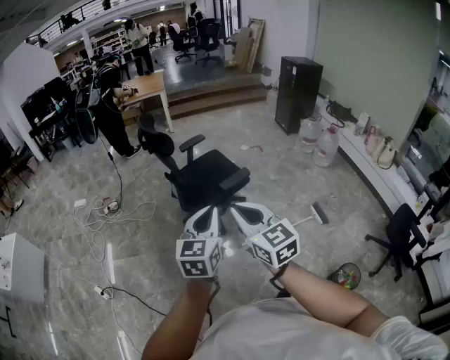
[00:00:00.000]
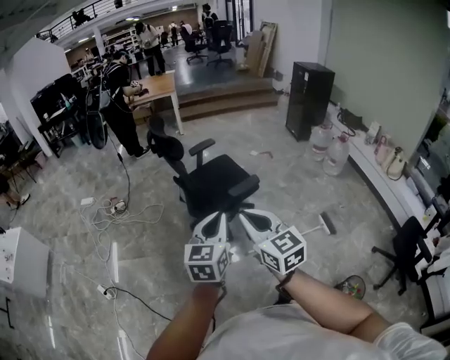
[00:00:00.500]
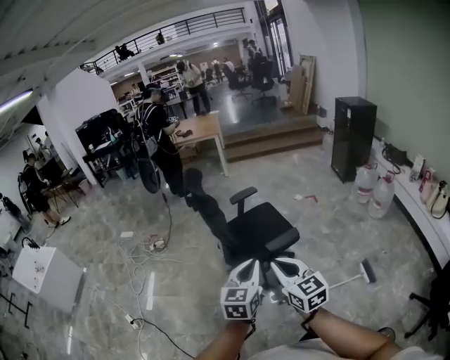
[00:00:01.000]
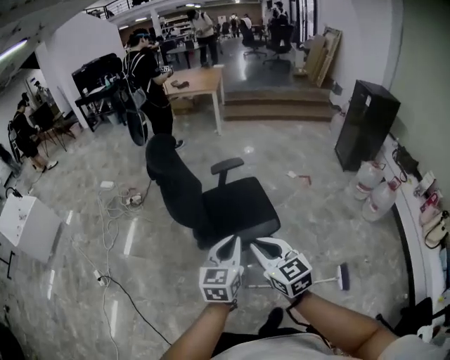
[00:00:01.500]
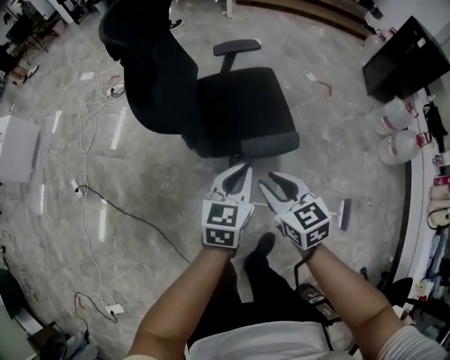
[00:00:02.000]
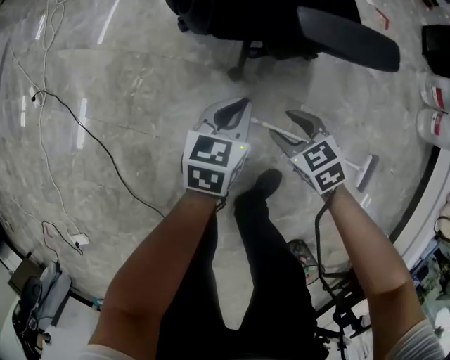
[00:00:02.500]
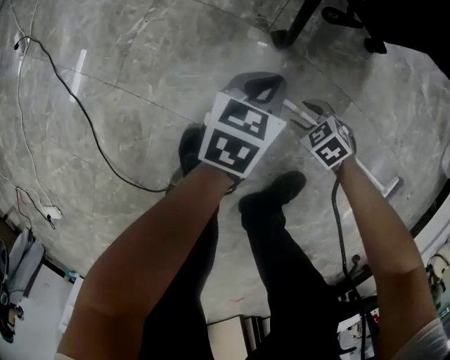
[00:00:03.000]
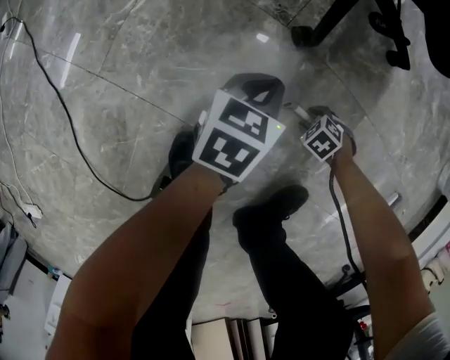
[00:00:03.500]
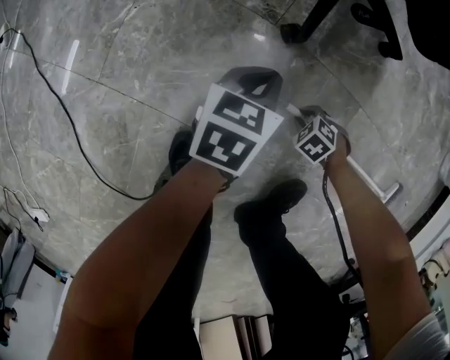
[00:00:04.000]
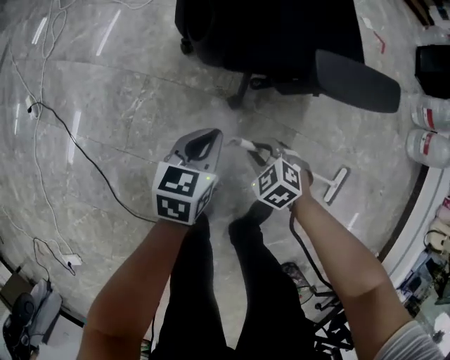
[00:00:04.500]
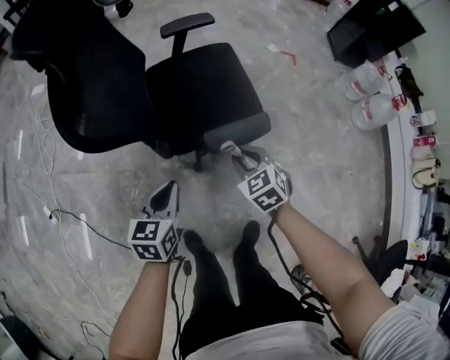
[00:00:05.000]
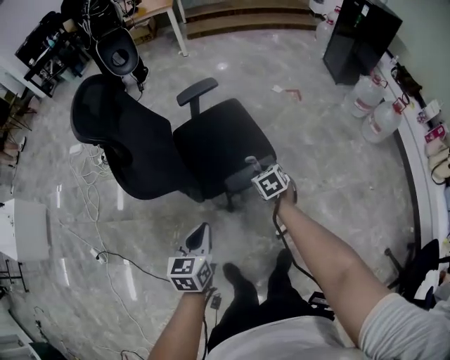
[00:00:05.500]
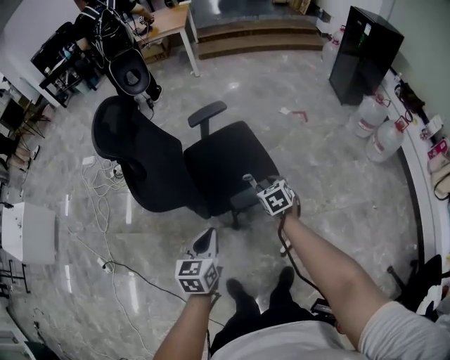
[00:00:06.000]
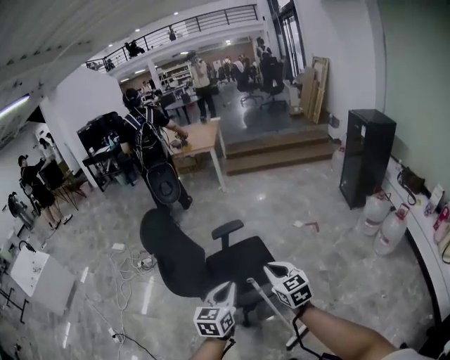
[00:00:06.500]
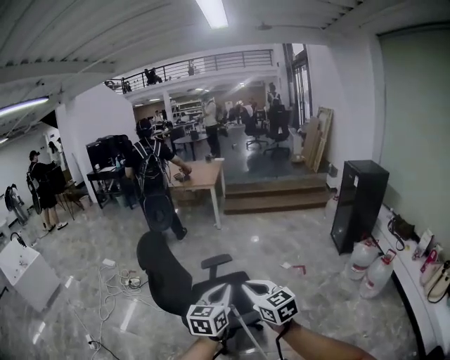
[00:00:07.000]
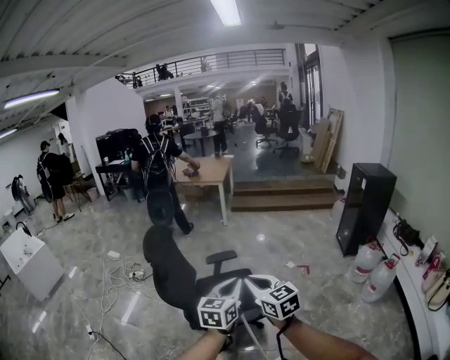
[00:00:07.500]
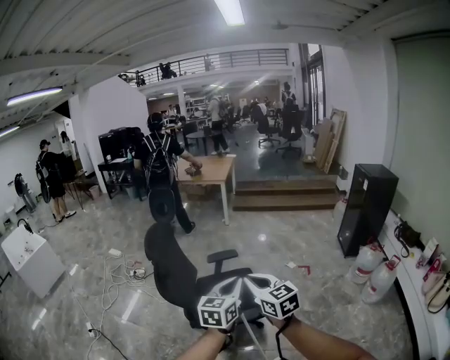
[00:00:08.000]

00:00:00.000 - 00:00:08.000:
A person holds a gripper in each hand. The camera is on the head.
00:00:00.000 - 00:00:02.000: The two grippers travel together, forward and to the right, approximately 40 cm. The two grippers go about 35 cm downward. The left gripper changes its angle by roughly 20 degrees, while the right gripper turns by roughly 30 degrees, and opens its fingers.
00:00:02.000 - 00:00:04.000: Both grippers move downward, roughly 80 cm. The left gripper rotates approximately 20 degrees, while the right gripper points its fingers roughly 60 degrees further downward, and opens, then closes once more.
00:00:04.000 - 00:00:06.000: The grippers both shift upward by some 80 cm. The right gripper tips its fingers upward by about 40 degrees.
00:00:06.000 - 00:00:08.000: The left gripper travels upward and to the right by about 40 cm, and changes its angle by about 20 degrees. Meanwhile the right gripper is displaced upward by some 40 cm, points its fingers roughly 40 degrees further upward, and closes up.

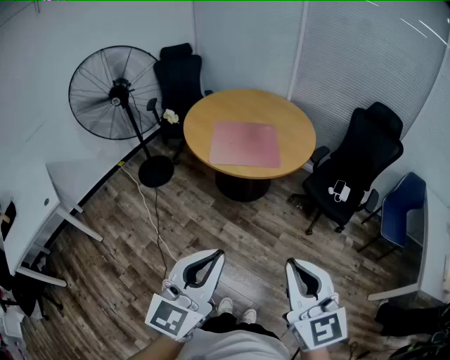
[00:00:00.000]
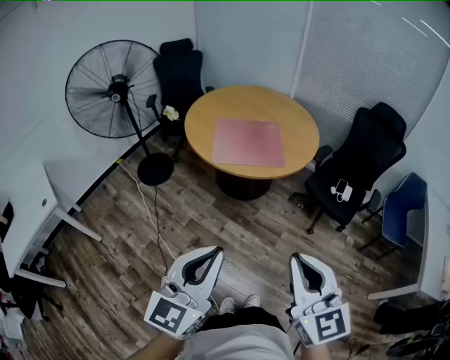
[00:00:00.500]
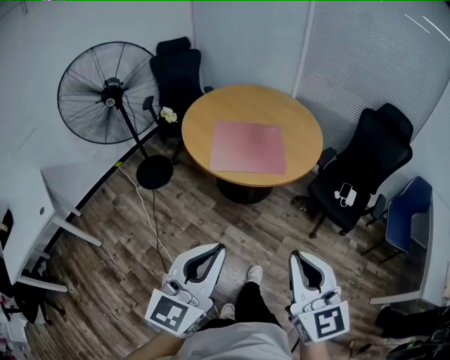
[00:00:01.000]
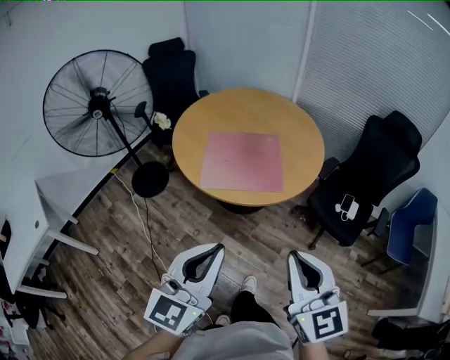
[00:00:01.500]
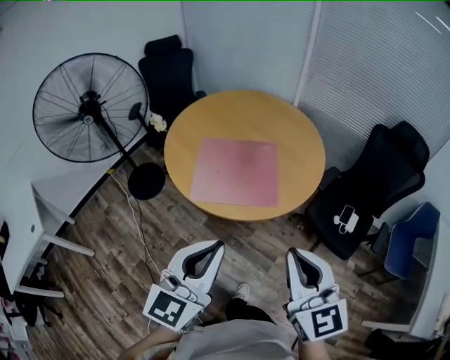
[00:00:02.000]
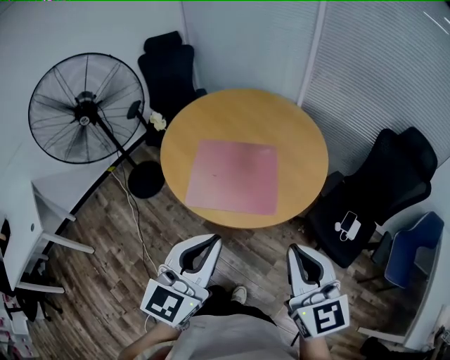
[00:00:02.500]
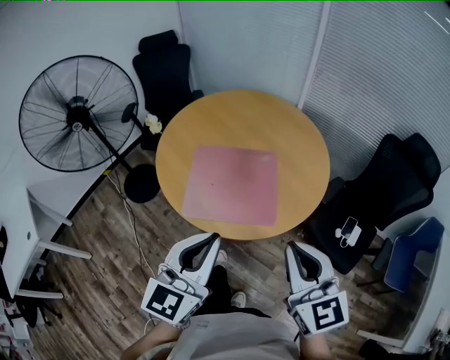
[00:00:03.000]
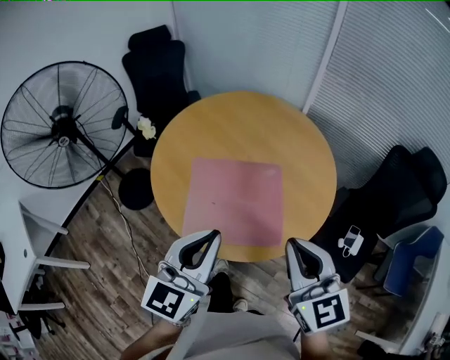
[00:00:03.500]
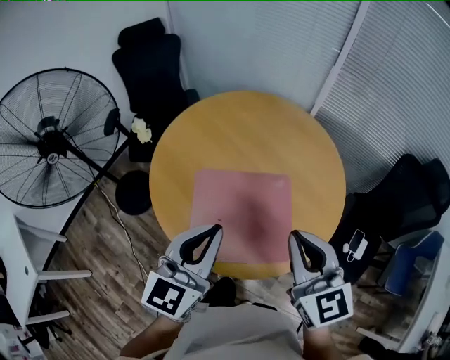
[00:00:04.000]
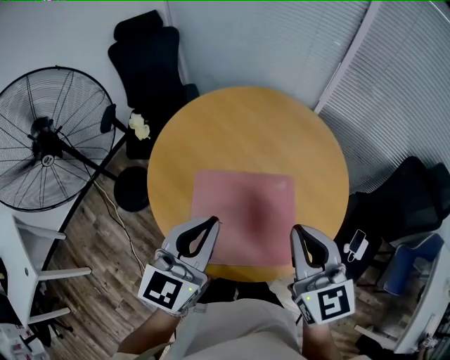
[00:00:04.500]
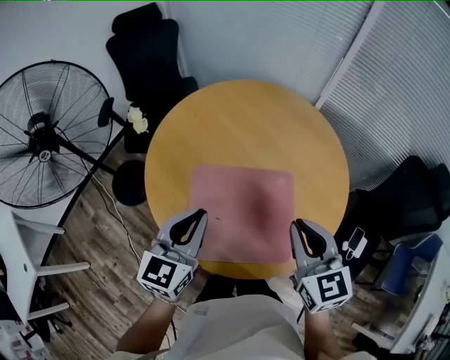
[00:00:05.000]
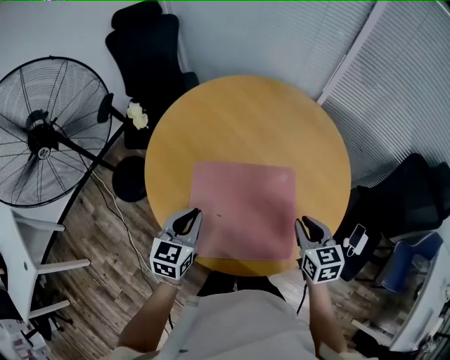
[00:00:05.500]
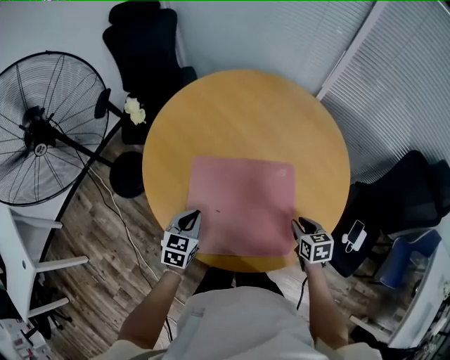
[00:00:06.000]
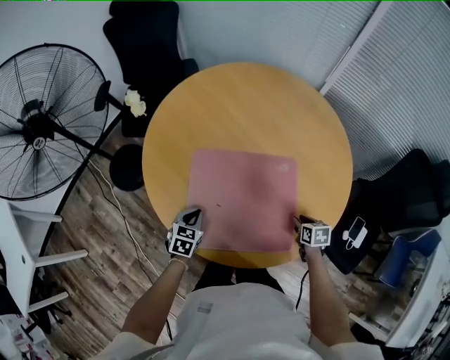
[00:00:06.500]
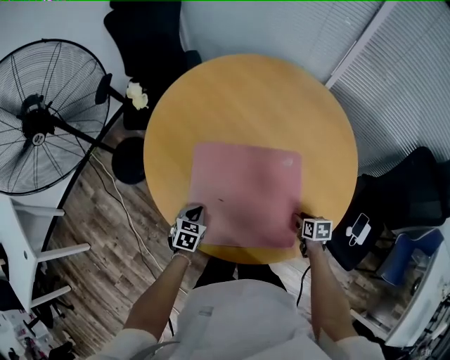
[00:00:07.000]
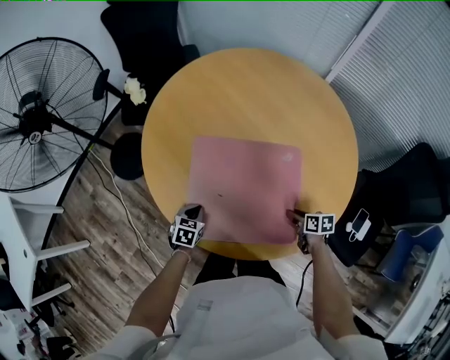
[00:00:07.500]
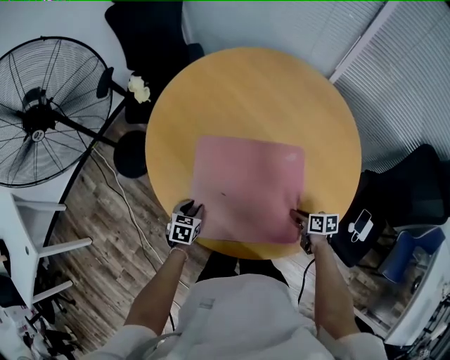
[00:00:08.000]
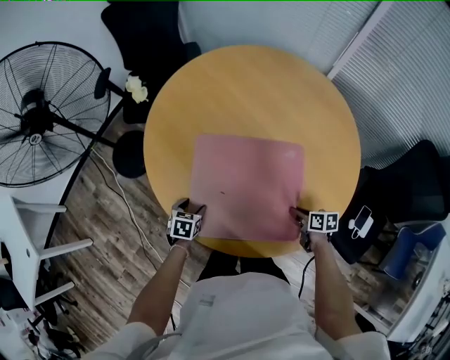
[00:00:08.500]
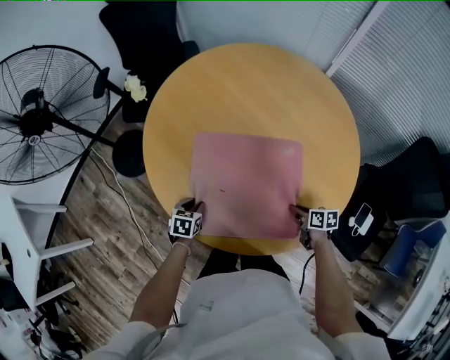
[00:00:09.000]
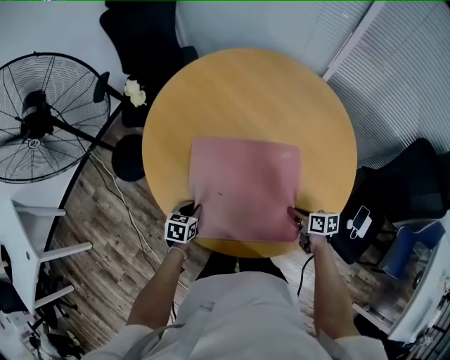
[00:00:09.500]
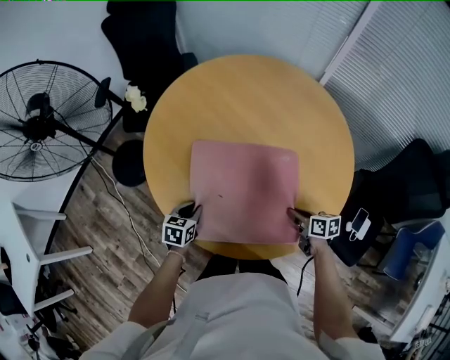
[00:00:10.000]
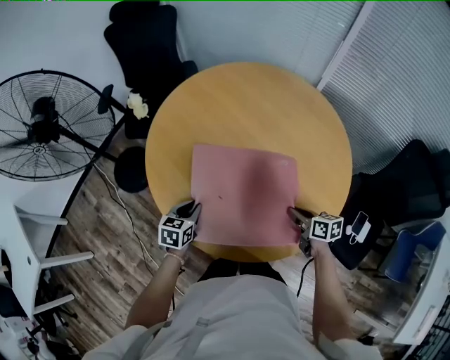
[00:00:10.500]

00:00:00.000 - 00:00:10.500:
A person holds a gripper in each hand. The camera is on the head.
00:00:00.000 - 00:00:02.000: The two grippers go some 35 cm forward.
00:00:02.000 - 00:00:04.000: Both grippers travel together forward, approximately 40 cm.
00:00:04.000 - 00:00:06.500: Both grippers travel together downward, roughly 40 cm. The left gripper tilts its fingers about 40 degrees downward, while the right gripper points its fingers about 50 degrees further downward, and opens up.
00:00:06.500 - 00:00:08.500: The right gripper changes its angle by roughly 20 degrees; the left gripper travels downward by about 5 cm, and opens up.
00:00:08.500 - 00:00:10.500: The two grippers go roughly 10 cm upward. The left gripper closes its fingers.

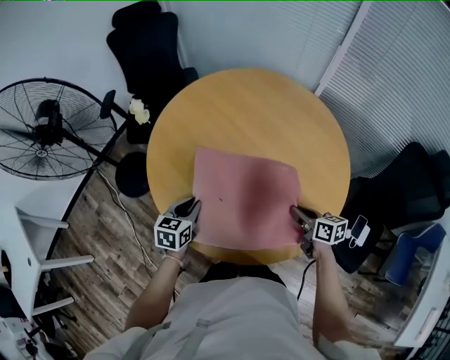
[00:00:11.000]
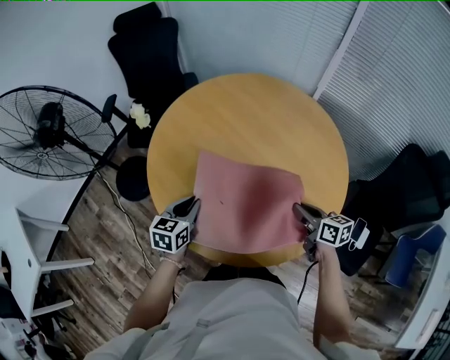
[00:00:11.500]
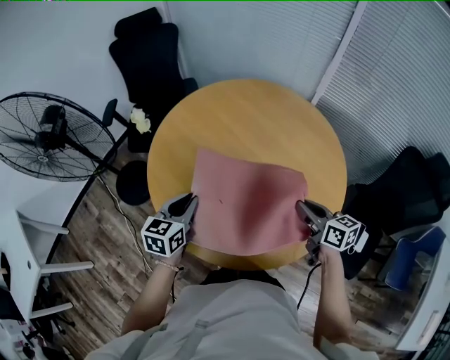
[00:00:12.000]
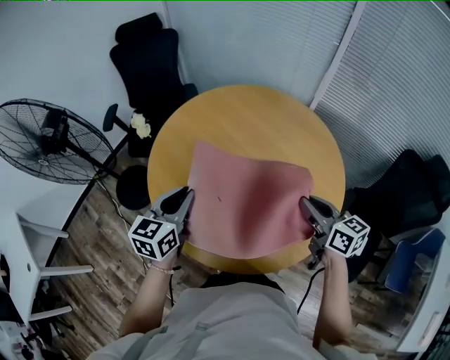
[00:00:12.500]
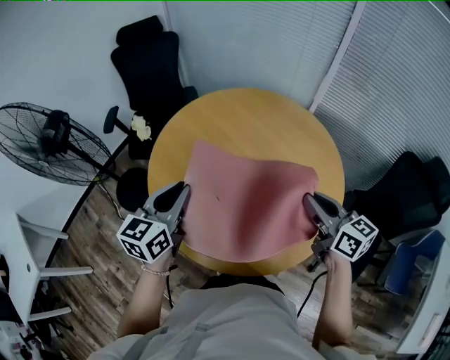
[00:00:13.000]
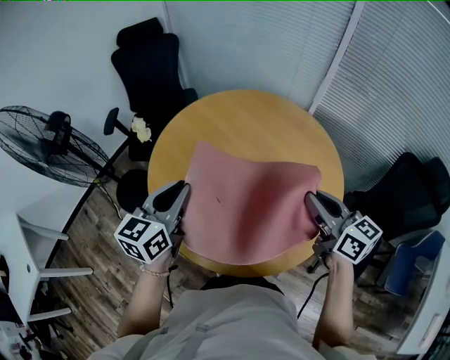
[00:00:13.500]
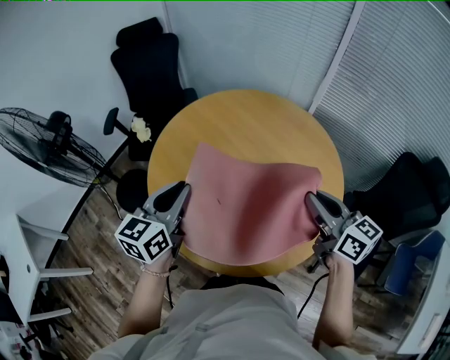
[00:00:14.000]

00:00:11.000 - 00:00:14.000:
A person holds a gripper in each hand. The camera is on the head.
00:00:11.000 - 00:00:12.500: The two grippers go approximately 20 cm upward. The right gripper changes its angle by roughly 20 degrees.
00:00:12.500 - 00:00:14.000: Both grippers move upward, approximately 5 cm.

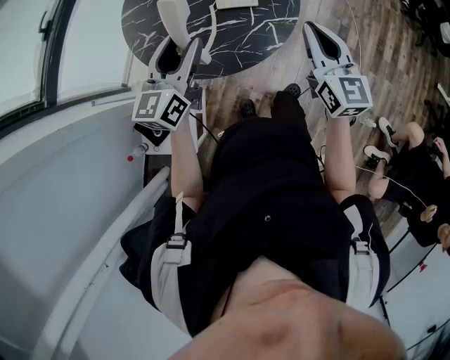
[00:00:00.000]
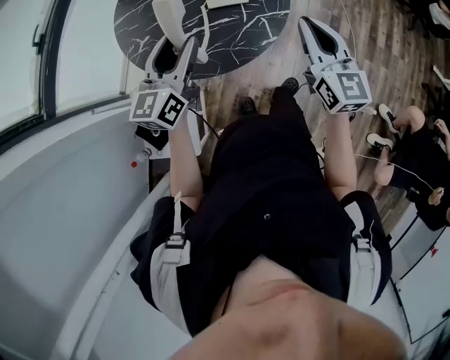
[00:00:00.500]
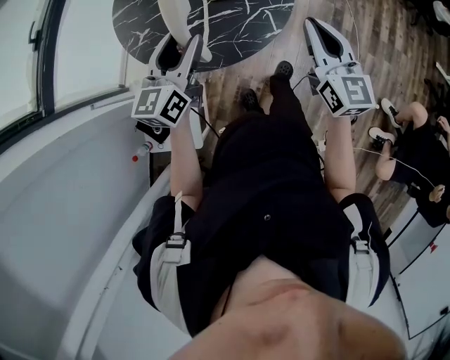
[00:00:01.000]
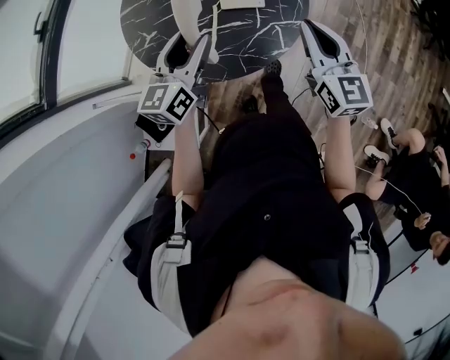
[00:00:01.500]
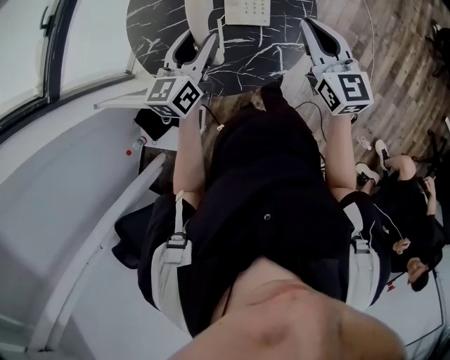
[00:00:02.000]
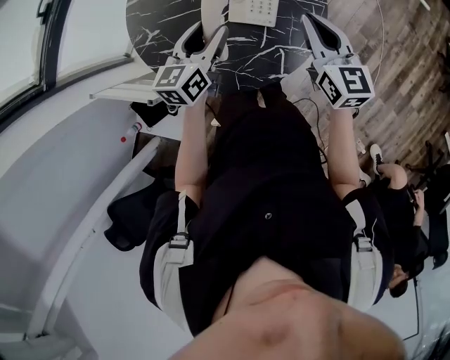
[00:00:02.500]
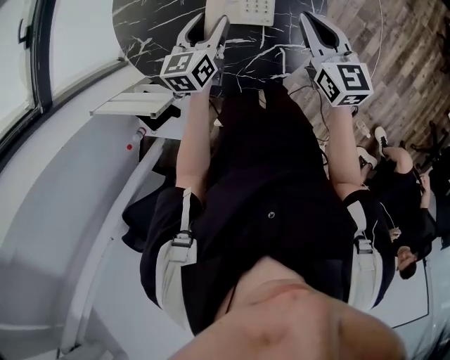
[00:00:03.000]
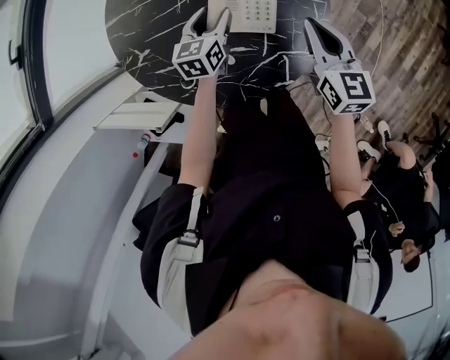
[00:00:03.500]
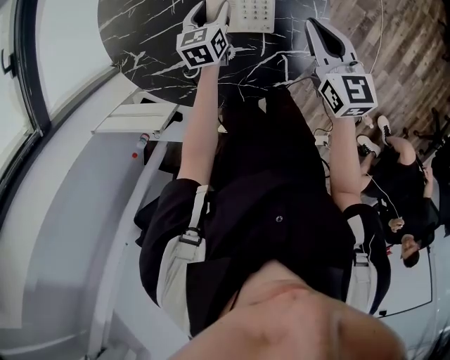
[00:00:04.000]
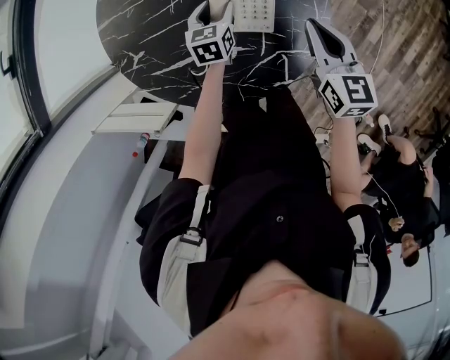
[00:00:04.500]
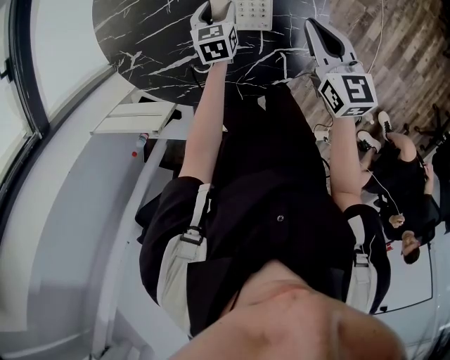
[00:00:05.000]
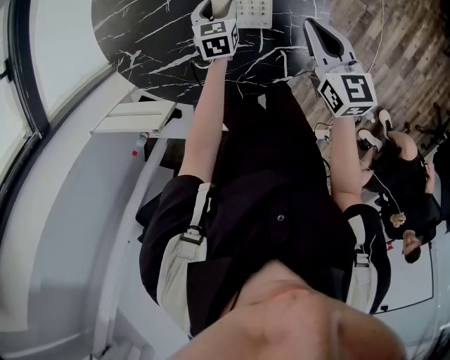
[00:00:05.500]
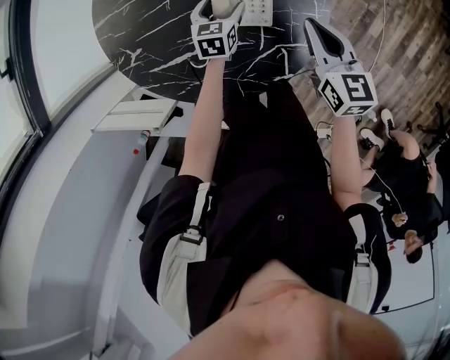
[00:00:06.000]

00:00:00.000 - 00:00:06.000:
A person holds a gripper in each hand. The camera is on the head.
00:00:00.000 - 00:00:02.000: The left gripper moves forward and downward, approximately 15 cm; the right gripper shifts some 15 cm forward.
00:00:02.000 - 00:00:04.000: The right gripper goes roughly 15 cm downward and forward; the left gripper travels downward and forward by about 30 cm, and rotates about 20 degrees.
00:00:04.000 - 00:00:06.000: The left gripper ends up roughly 5 cm from where it was, and opens.
